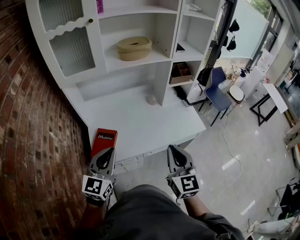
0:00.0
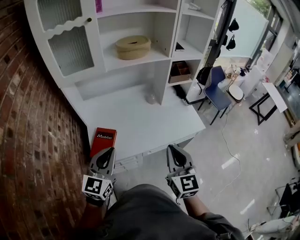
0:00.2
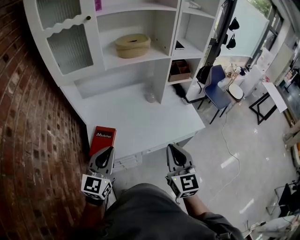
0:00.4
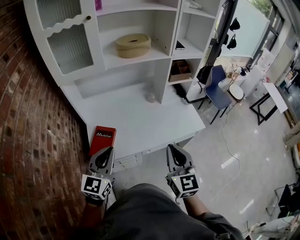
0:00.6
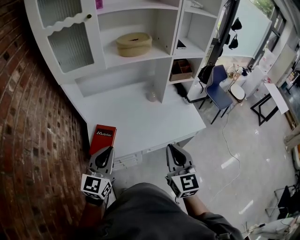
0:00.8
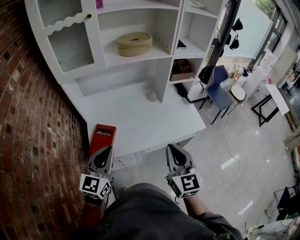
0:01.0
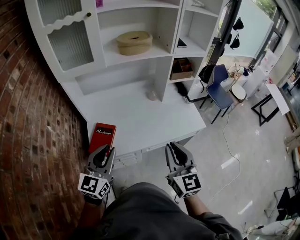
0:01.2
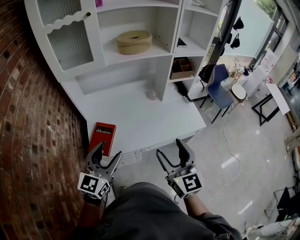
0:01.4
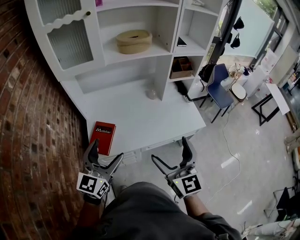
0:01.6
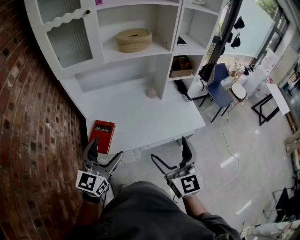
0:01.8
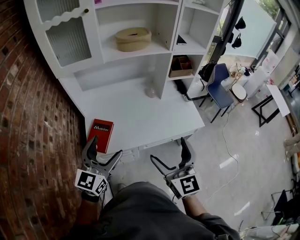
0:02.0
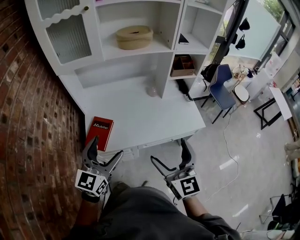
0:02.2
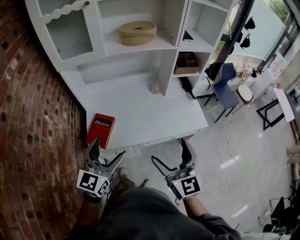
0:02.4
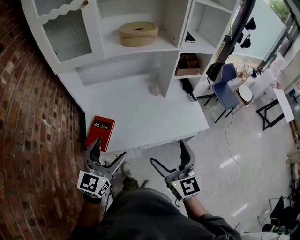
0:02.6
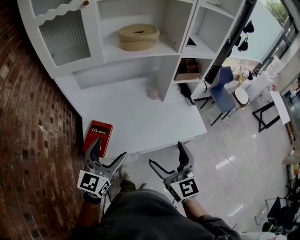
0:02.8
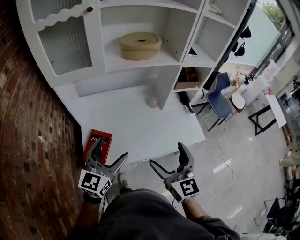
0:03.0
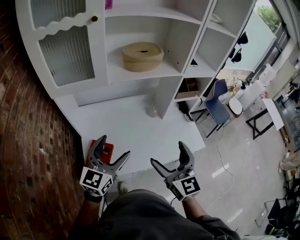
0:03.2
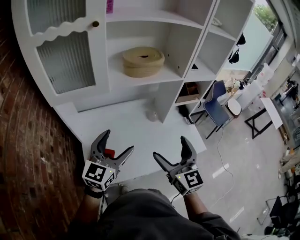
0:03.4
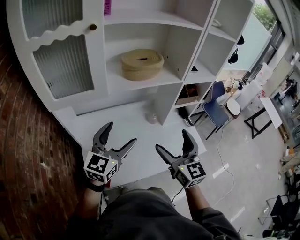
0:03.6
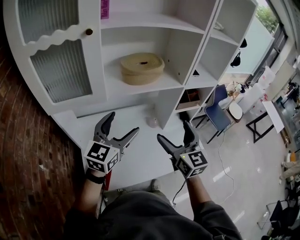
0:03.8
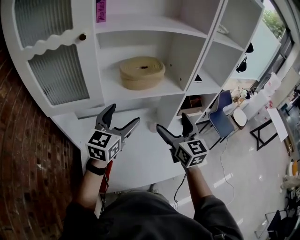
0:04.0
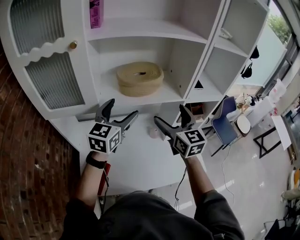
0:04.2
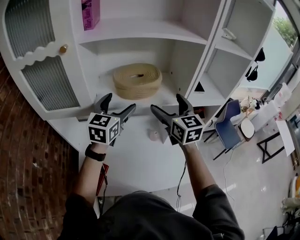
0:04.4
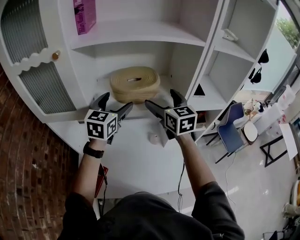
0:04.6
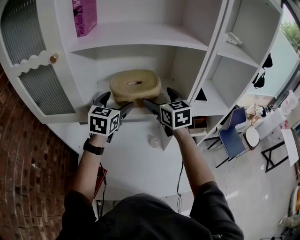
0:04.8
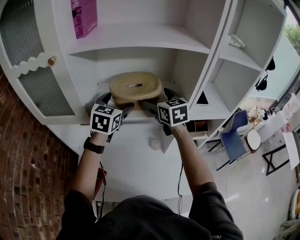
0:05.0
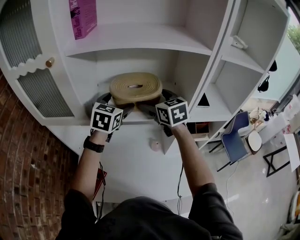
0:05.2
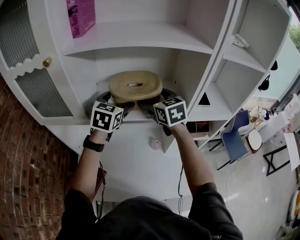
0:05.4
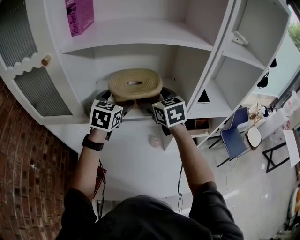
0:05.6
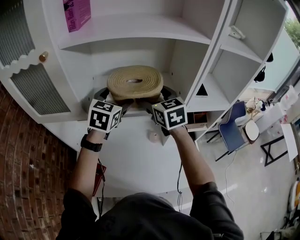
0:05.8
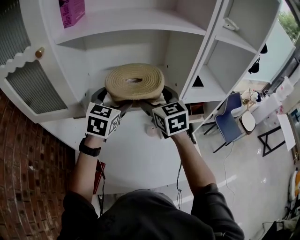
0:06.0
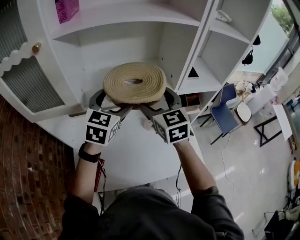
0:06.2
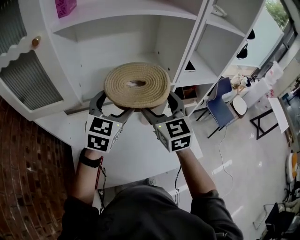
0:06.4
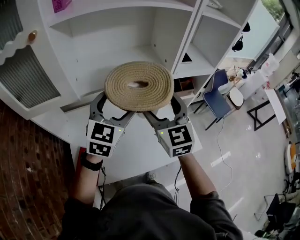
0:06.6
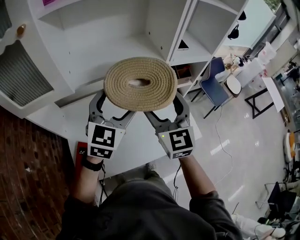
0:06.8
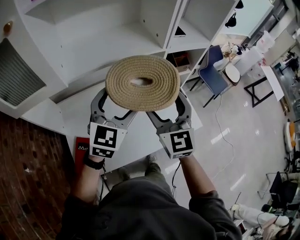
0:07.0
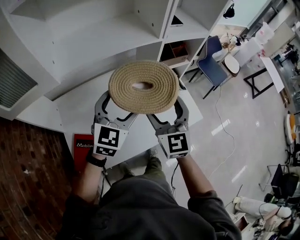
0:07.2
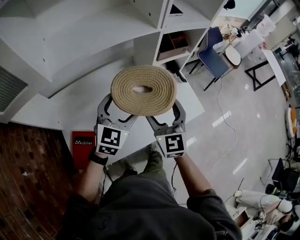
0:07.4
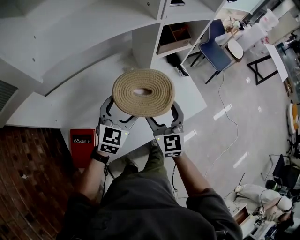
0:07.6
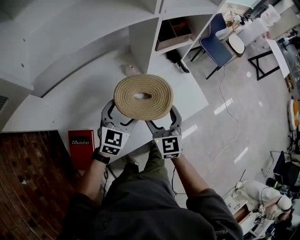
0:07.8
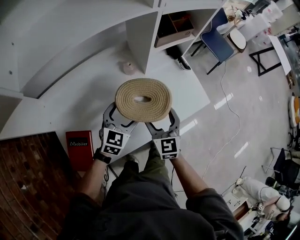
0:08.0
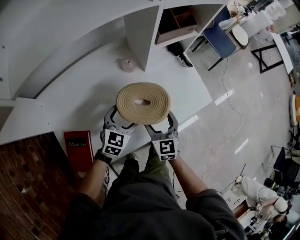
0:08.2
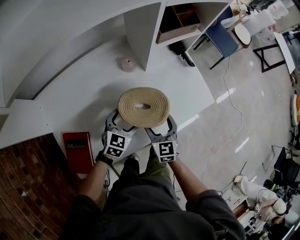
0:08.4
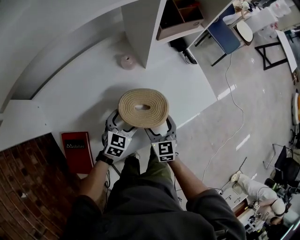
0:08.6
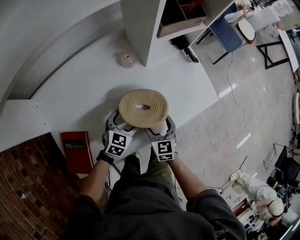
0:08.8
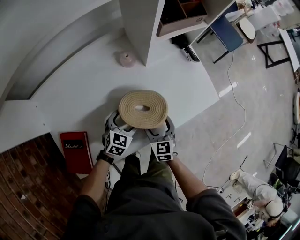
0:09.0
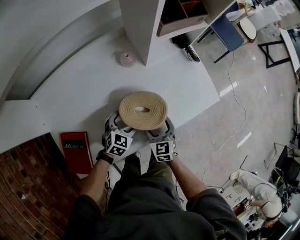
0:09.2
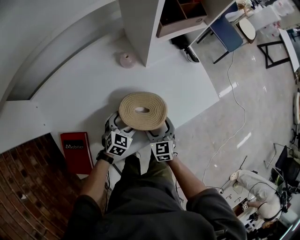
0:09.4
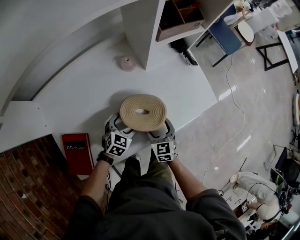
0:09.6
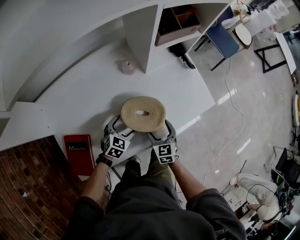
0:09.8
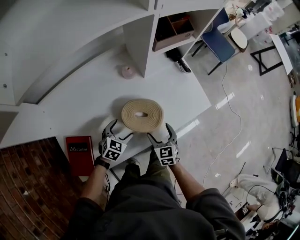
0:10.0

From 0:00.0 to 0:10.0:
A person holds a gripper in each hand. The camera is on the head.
From 0:00.0 to 0:01.4: The left gripper opens its fingers. Meanwhile the right gripper opens up.
From 0:01.4 to 0:02.8: Both grippers move forward, some 5 cm. The left gripper opens its fingers; the right gripper opens.
From 0:02.8 to 0:04.2: The two grippers go about 35 cm forward.
From 0:04.2 to 0:05.8: The grippers both shift forward by about 15 cm. The left gripper swivels some 20 degrees.
From 0:05.8 to 0:07.2: The right gripper moves about 30 cm, and changes its angle by some 30 degrees. Meanwhile the left gripper moves roughly 25 cm, and turns by some 30 degrees.
From 0:07.2 to 0:08.6: The grippers both shift downward by some 35 cm. The right gripper rotates roughly 30 degrees, while the left gripper turns by roughly 30 degrees.
From 0:08.6 to 0:10.0: The right gripper changes place by roughly 5 cm. Meanwhile the left gripper changes place by approximately 5 cm.

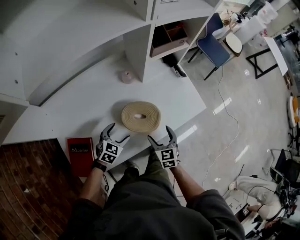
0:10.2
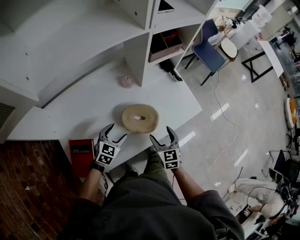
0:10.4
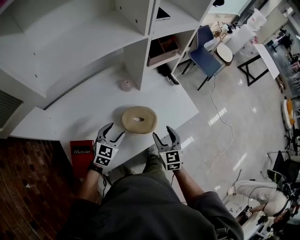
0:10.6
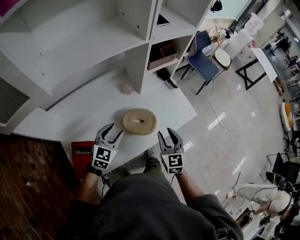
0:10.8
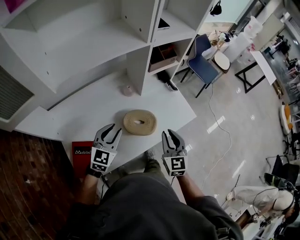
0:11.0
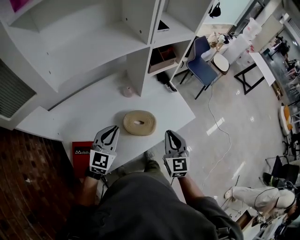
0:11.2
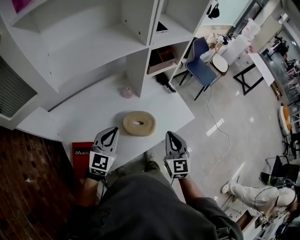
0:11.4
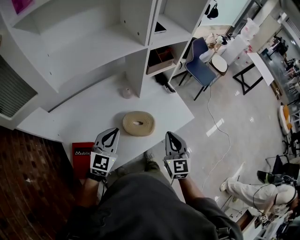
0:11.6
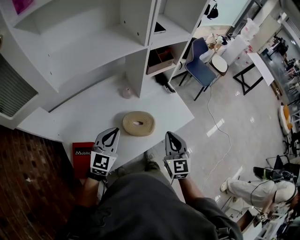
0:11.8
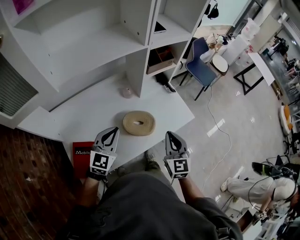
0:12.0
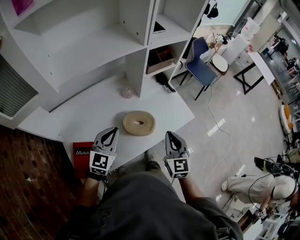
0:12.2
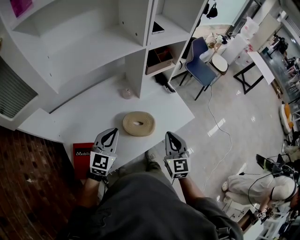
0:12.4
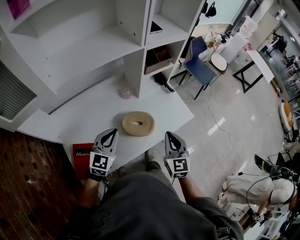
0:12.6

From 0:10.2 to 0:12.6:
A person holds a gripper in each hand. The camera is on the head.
From 0:10.2 to 0:11.4: The two grippers go roughly 25 cm upward. The right gripper swivels approximately 20 degrees, and closes up, while the left gripper points its fingers approximately 30 degrees further upward, and closes its fingers.
From 0:11.4 to 0:12.6: Neither gripper changes place.

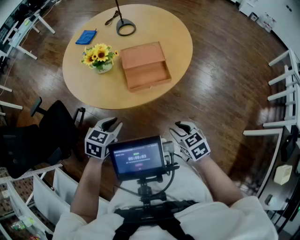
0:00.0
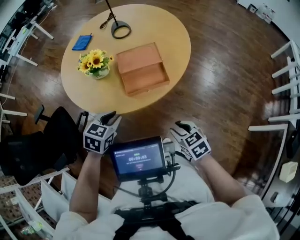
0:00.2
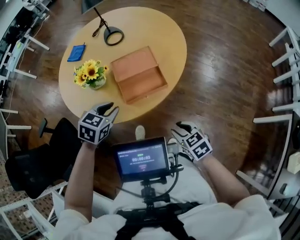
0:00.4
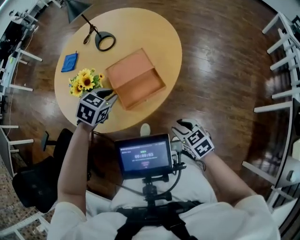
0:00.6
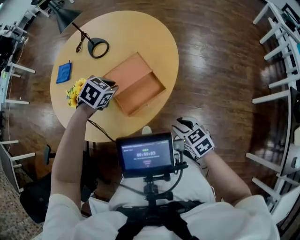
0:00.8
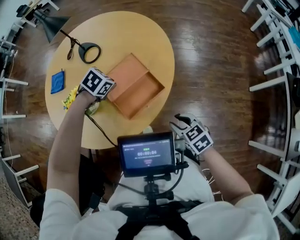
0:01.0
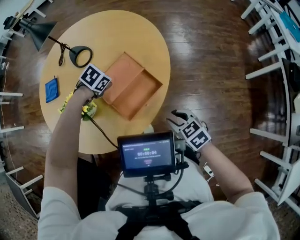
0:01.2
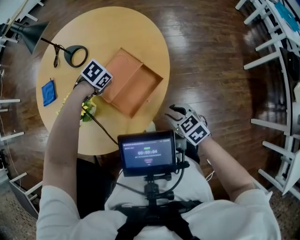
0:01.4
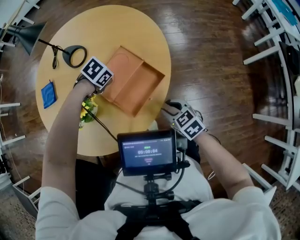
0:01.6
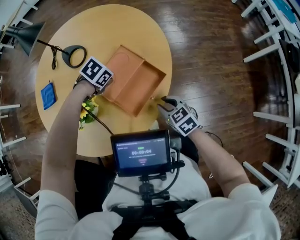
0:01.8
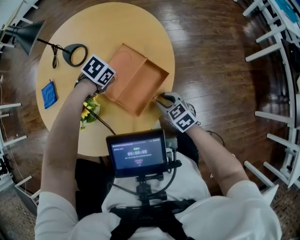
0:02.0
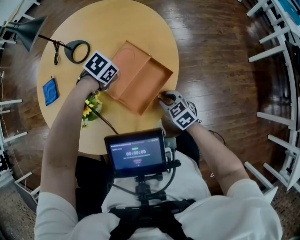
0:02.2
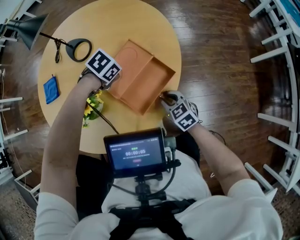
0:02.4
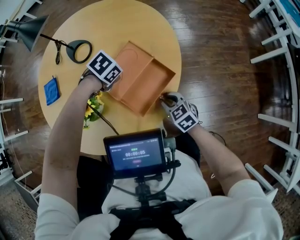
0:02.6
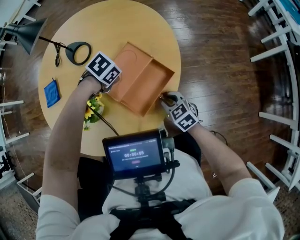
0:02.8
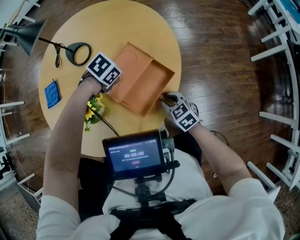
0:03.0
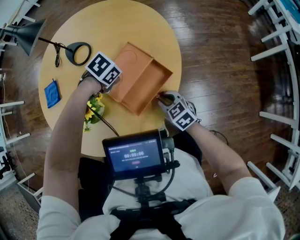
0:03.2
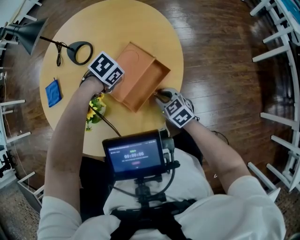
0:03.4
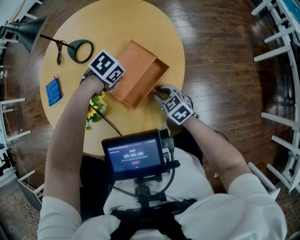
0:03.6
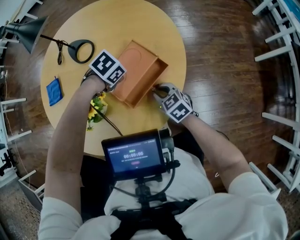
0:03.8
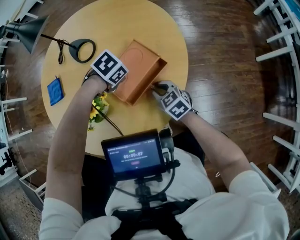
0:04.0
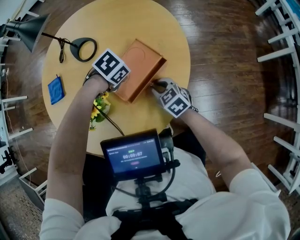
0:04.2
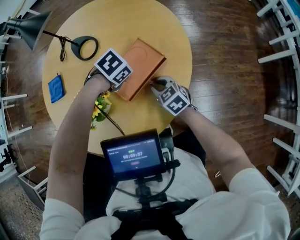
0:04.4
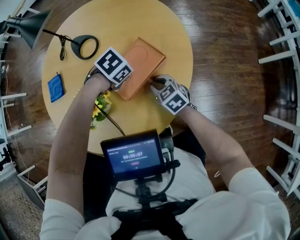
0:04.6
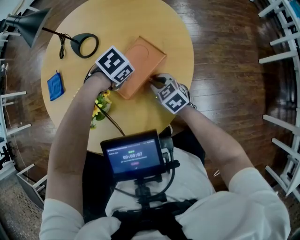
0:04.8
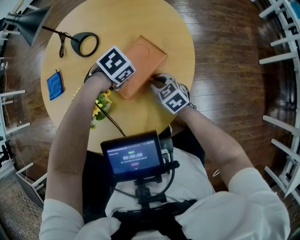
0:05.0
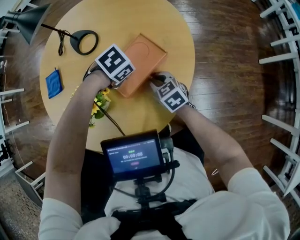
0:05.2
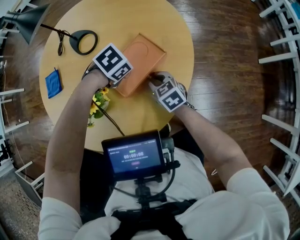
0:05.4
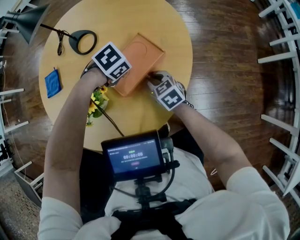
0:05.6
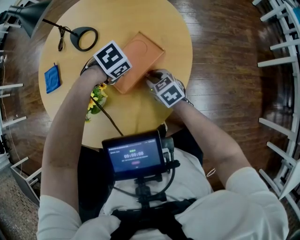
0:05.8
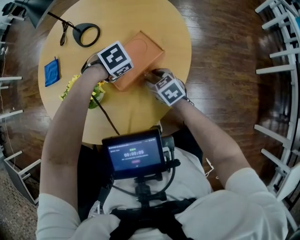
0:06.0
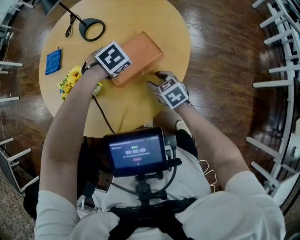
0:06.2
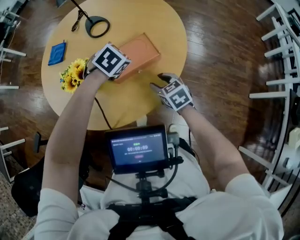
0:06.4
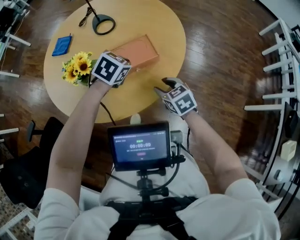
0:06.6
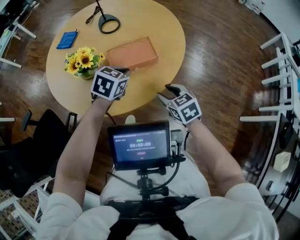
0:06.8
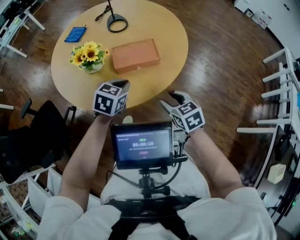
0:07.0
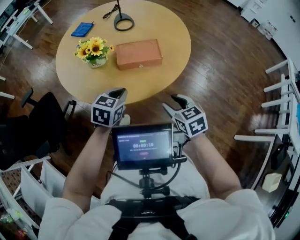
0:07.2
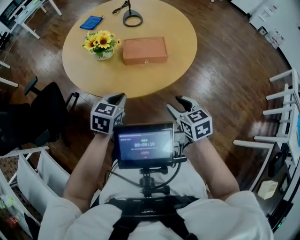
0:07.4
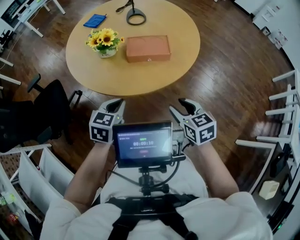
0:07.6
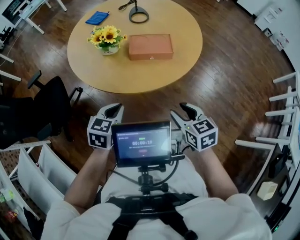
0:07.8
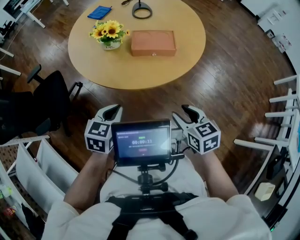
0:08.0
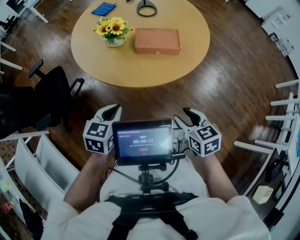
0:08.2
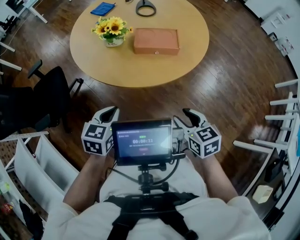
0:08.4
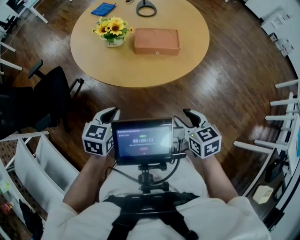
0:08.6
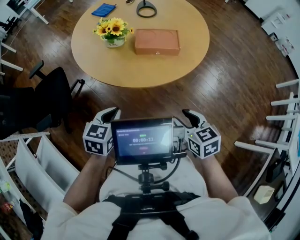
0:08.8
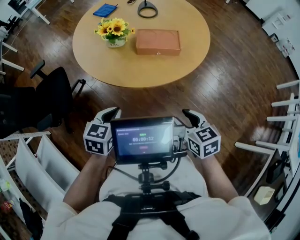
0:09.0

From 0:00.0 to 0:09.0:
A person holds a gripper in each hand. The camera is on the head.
From 0:00.0 to 0:01.6: The left gripper shifts by approximately 40 cm, angles its fingers downward, by approximately 30 degrees, and closes its fingers. Meanwhile the right gripper changes place by approximately 20 cm, and changes its angle by roughly 30 degrees.
From 0:01.6 to 0:03.0: The right gripper shifts by about 5 cm.
From 0:03.0 to 0:04.4: The right gripper changes place by roughly 10 cm.
From 0:04.4 to 0:06.0: The right gripper opens.
From 0:06.0 to 0:07.6: The right gripper ends up some 30 cm from where it was, and turns by some 20 degrees, while the left gripper moves roughly 30 cm, and tips its fingers upward by some 40 degrees.
From 0:07.6 to 0:09.0: The two grippers go roughly 5 cm backward.

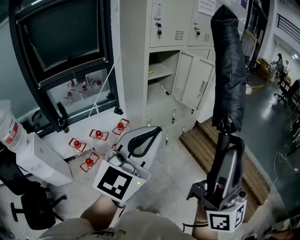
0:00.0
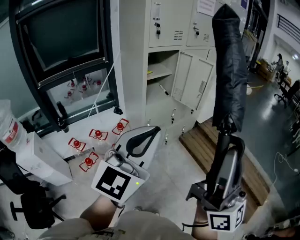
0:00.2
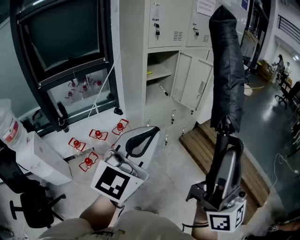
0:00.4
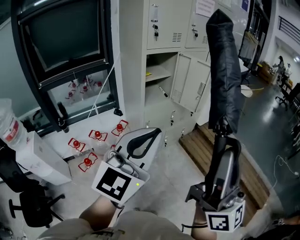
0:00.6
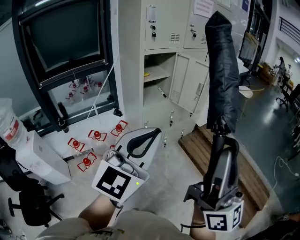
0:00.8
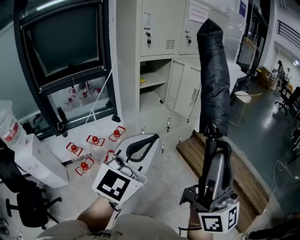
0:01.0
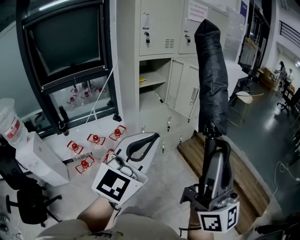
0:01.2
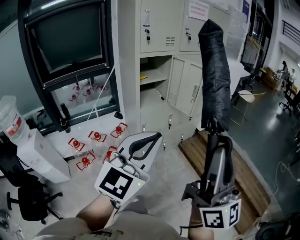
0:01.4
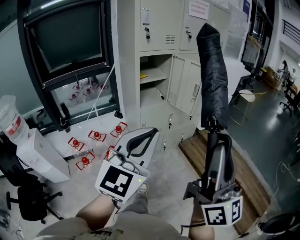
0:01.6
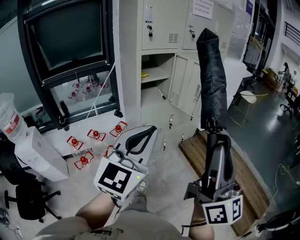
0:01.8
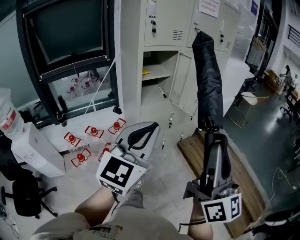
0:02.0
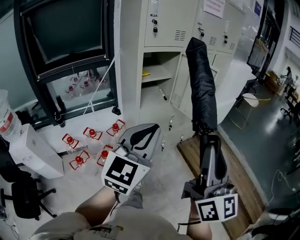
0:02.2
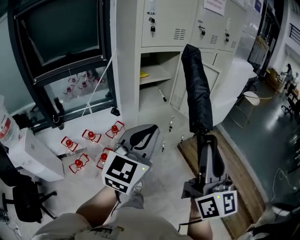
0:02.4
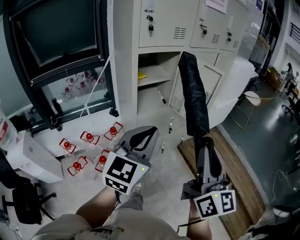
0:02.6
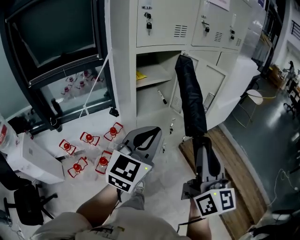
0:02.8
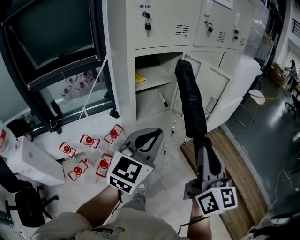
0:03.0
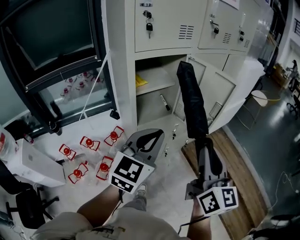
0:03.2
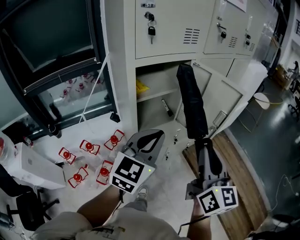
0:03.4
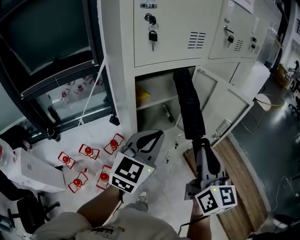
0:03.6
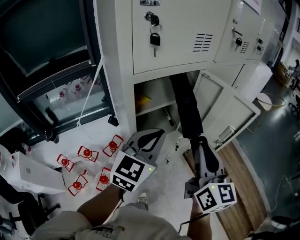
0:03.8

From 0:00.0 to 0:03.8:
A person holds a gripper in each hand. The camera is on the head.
From 0:00.0 to 0:01.2: The two grippers go roughly 10 cm to the right.
From 0:01.2 to 0:02.6: The two grippers go roughly 25 cm forward and downward. The right gripper turns by about 20 degrees.
From 0:02.6 to 0:03.8: The two grippers go roughly 25 cm forward.
